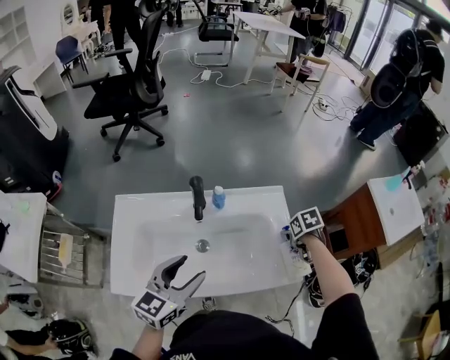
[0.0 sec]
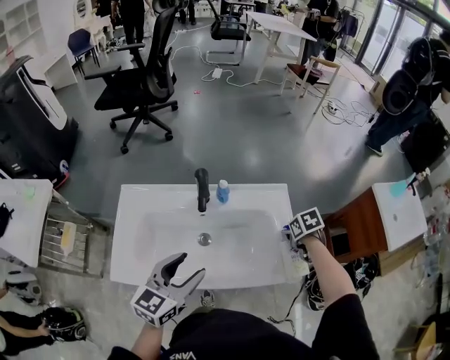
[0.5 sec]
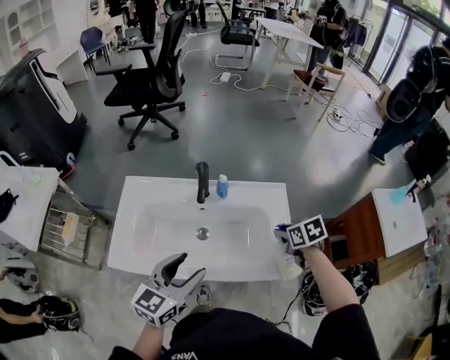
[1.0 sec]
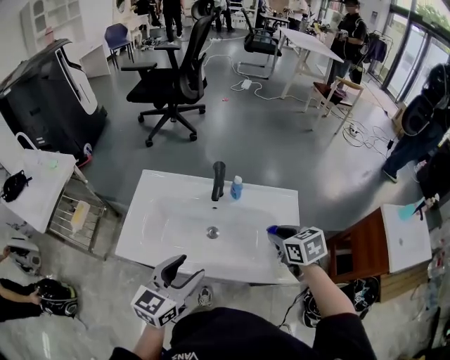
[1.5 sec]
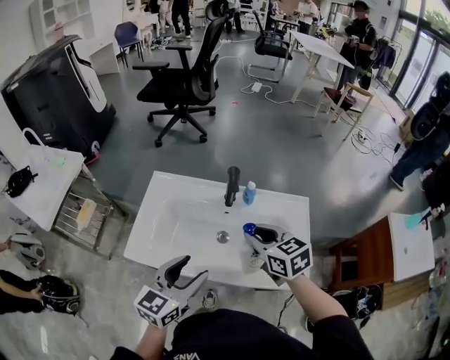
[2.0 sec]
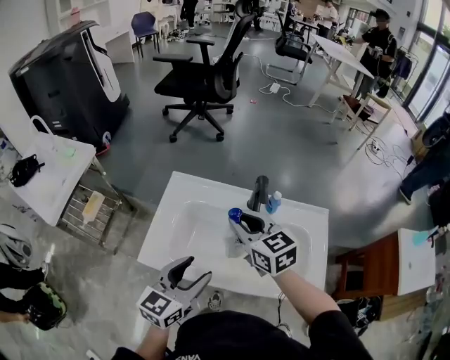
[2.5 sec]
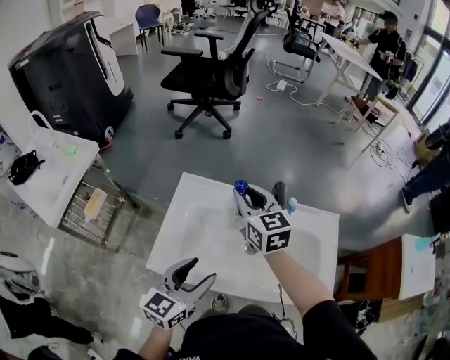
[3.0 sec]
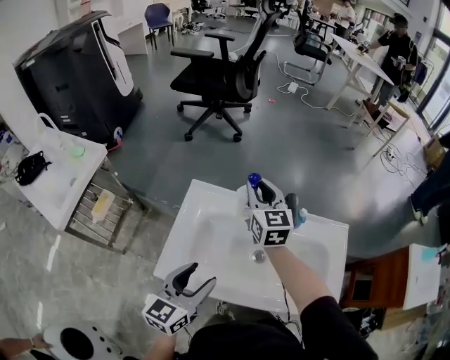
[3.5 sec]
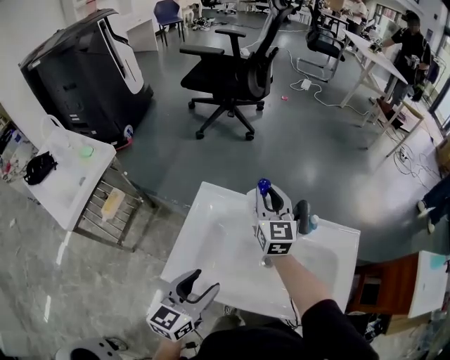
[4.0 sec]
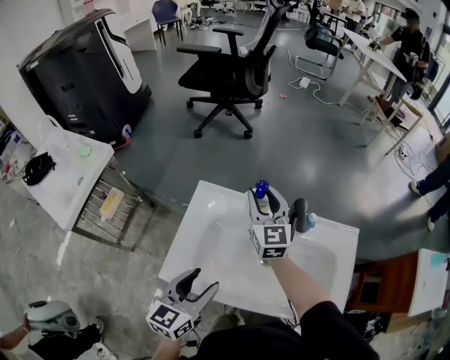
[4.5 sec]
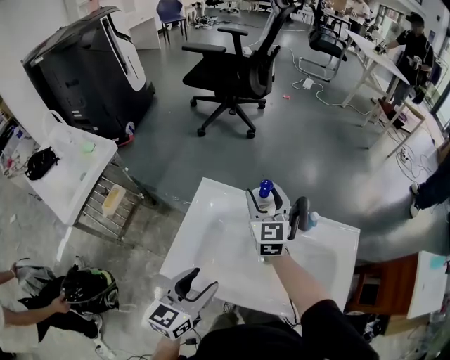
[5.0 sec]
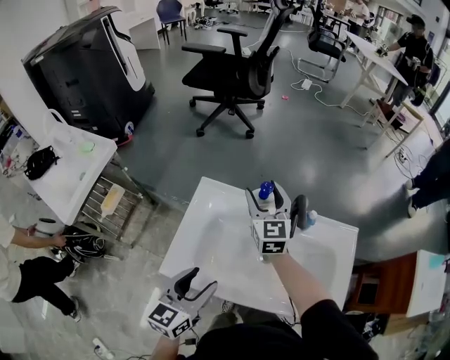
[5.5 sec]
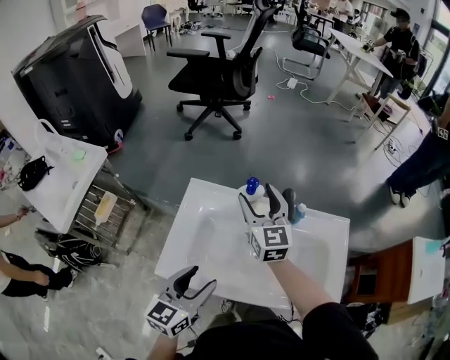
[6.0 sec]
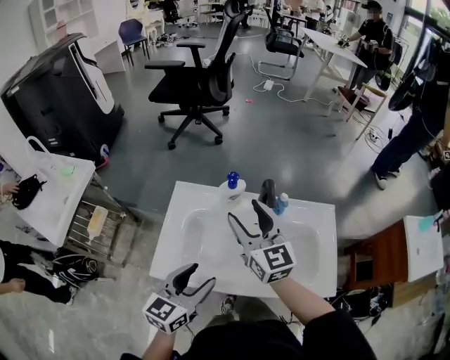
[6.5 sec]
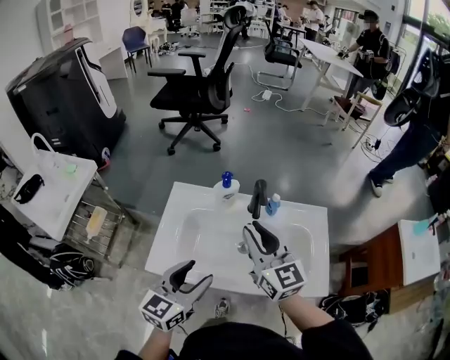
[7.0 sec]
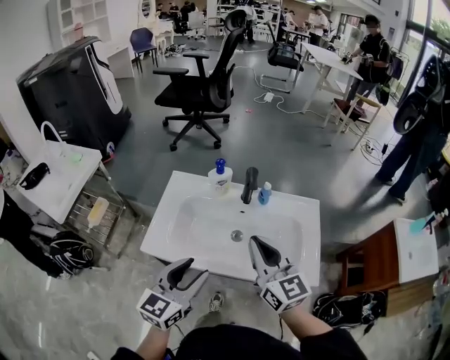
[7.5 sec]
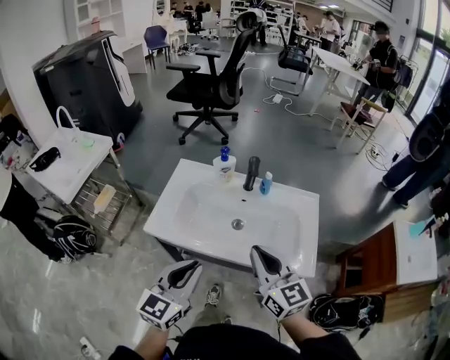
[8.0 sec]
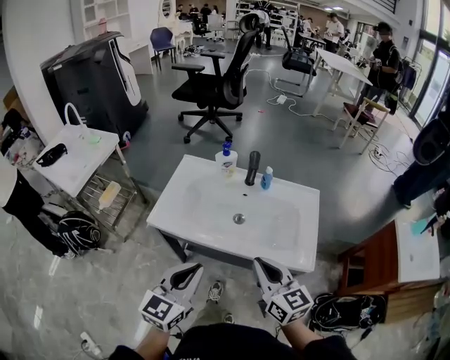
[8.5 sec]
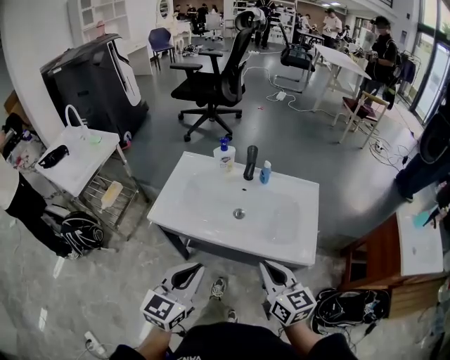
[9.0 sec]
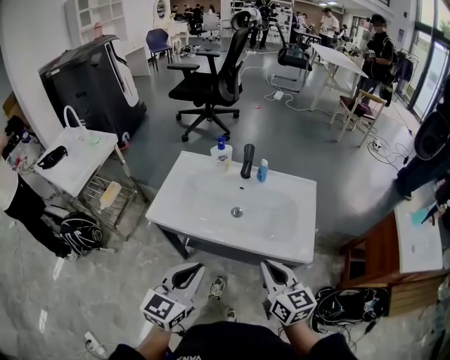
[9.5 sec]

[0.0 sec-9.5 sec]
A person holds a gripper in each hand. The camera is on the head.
0.0 sec to 2.0 sec: The left gripper travels backward by some 5 cm, while the right gripper goes about 30 cm to the left and upward, points its fingers roughly 40 degrees further upward, and closes its fingers.
2.0 sec to 4.0 sec: The left gripper goes approximately 15 cm to the left and forward. The right gripper shifts about 30 cm forward and to the left, and rotates roughly 30 degrees.
4.0 sec to 5.5 sec: The right gripper opens.
5.5 sec to 7.5 sec: The right gripper heads backward and to the right, covering approximately 30 cm, and closes up. The left gripper shifts about 15 cm to the right, backward and upward.
7.5 sec to 9.5 sec: The left gripper shifts about 15 cm backward, and closes its fingers. Meanwhile the right gripper shifts approximately 20 cm backward, downward and to the right.

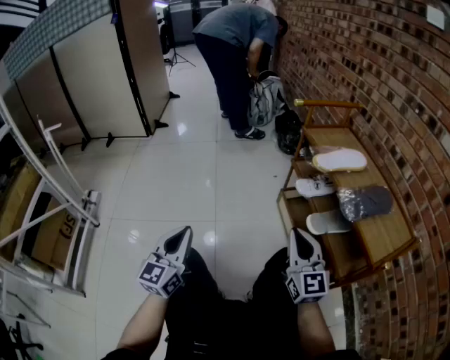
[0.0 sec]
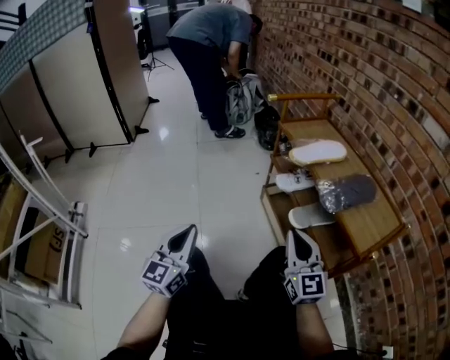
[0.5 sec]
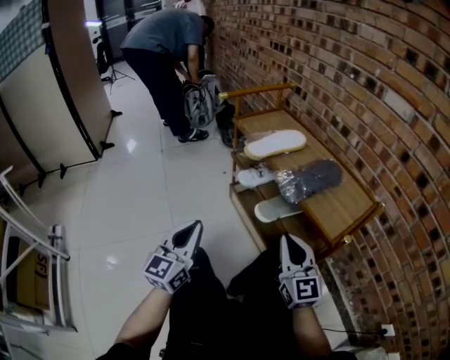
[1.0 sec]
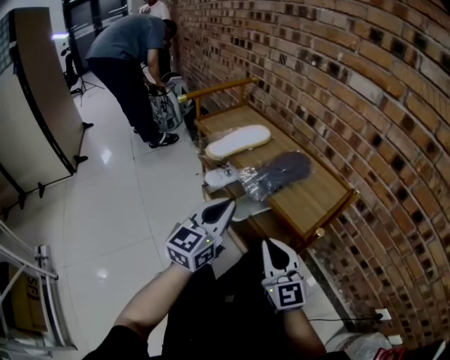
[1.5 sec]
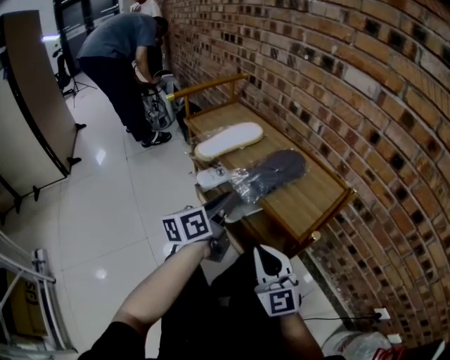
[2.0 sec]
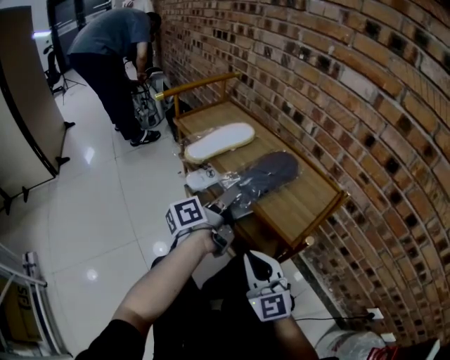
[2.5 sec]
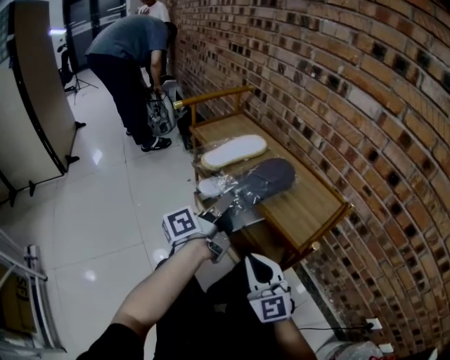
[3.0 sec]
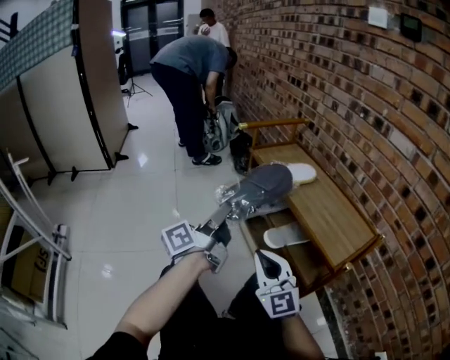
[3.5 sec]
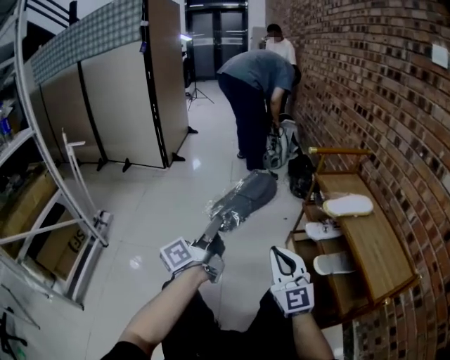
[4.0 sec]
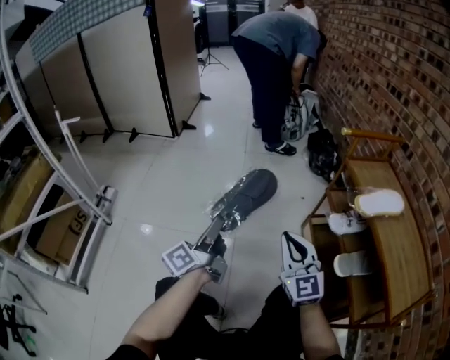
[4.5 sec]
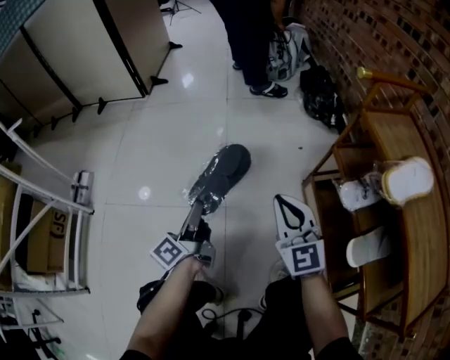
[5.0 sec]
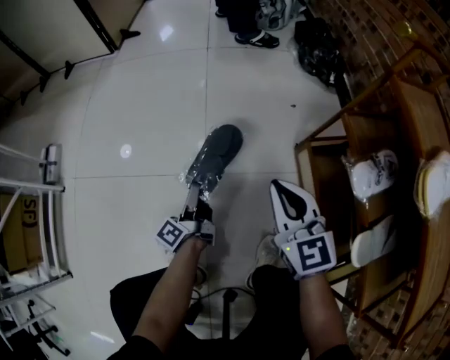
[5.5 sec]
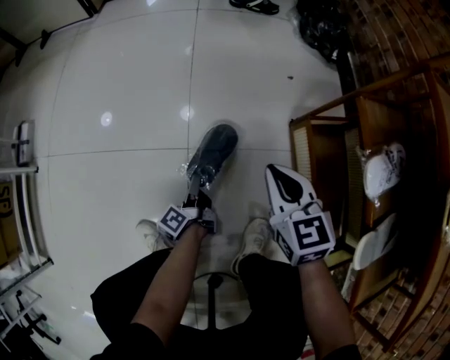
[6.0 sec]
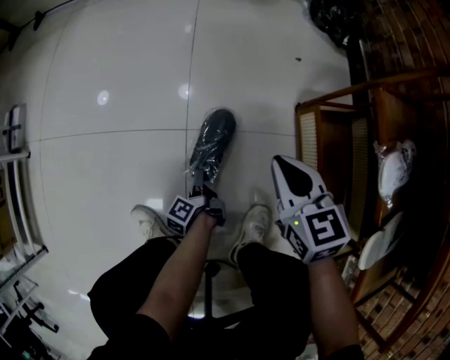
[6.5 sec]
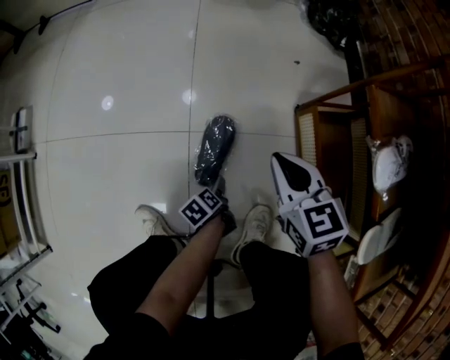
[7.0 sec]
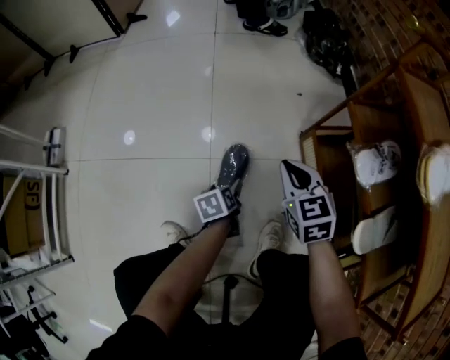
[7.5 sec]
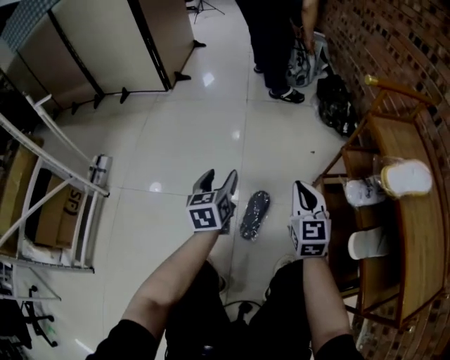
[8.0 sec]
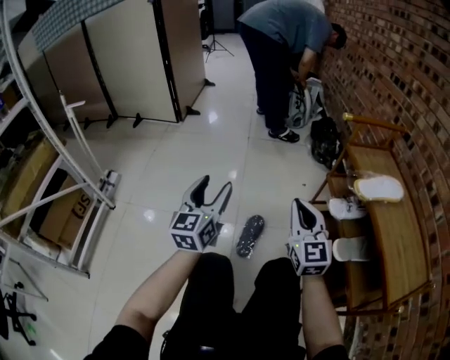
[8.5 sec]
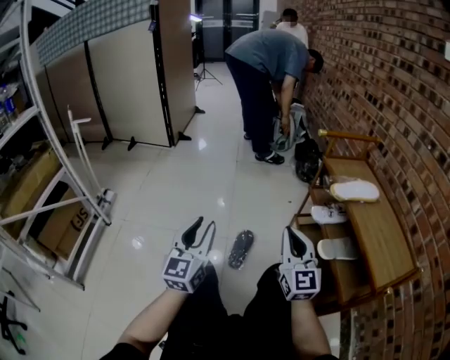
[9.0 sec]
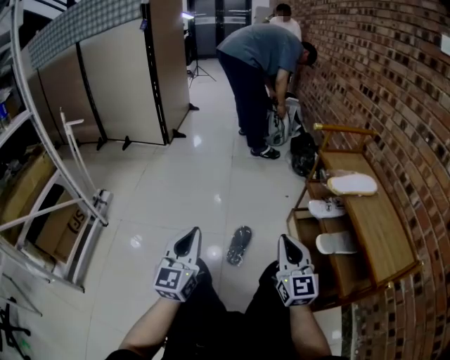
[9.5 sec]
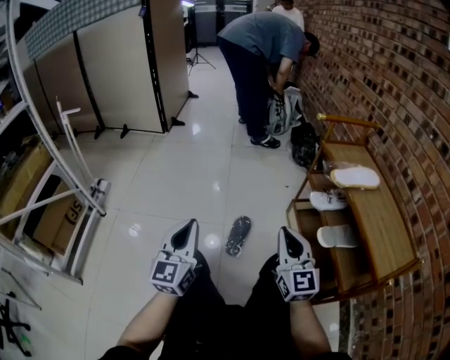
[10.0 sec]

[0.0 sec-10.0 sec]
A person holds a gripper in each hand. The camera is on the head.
0.0 sec to 2.0 sec: The left gripper changes place by about 40 cm, and swivels about 60 degrees; the right gripper moves roughly 15 cm.
2.0 sec to 4.0 sec: The left gripper ends up roughly 40 cm from where it was, and swivels some 50 degrees. The right gripper moves about 30 cm, and changes its angle by about 30 degrees.
4.0 sec to 6.0 sec: The right gripper moves downward and forward, roughly 40 cm, and points its fingers some 40 degrees further downward, while the left gripper travels downward by roughly 60 cm, and points its fingers approximately 40 degrees further downward.
6.0 sec to 8.0 sec: The left gripper is displaced upward by roughly 35 cm, rolls clockwise, seen from behind, by about 70 degrees, and opens up. Meanwhile the right gripper heads upward, covering approximately 15 cm, and rotates approximately 20 degrees.
8.0 sec to 10.0 sec: The two grippers go roughly 30 cm backward and upward. The left gripper changes its angle by approximately 30 degrees, and closes.

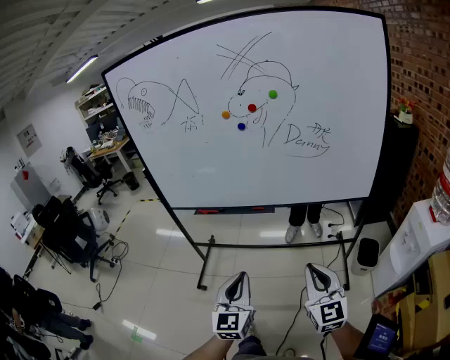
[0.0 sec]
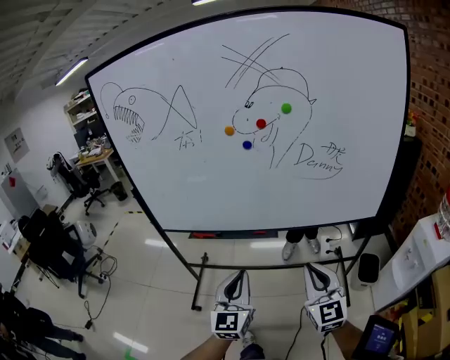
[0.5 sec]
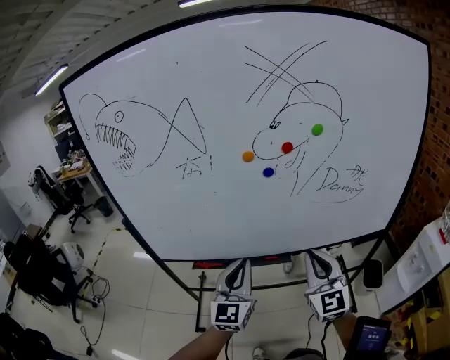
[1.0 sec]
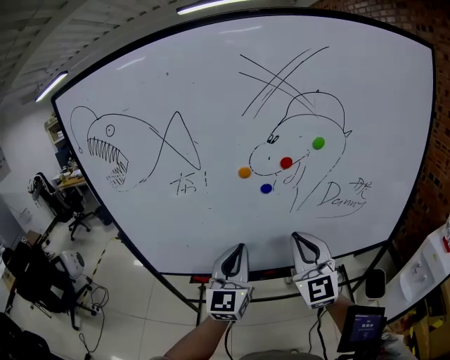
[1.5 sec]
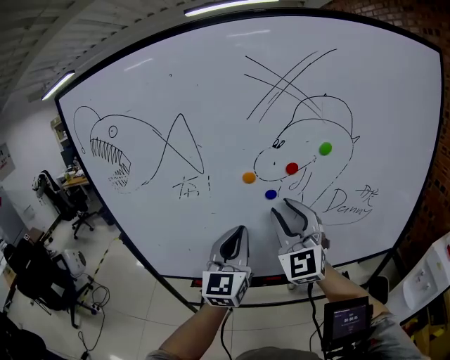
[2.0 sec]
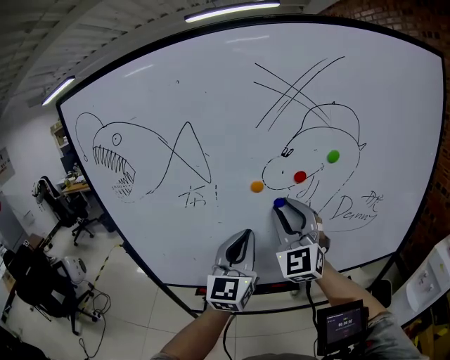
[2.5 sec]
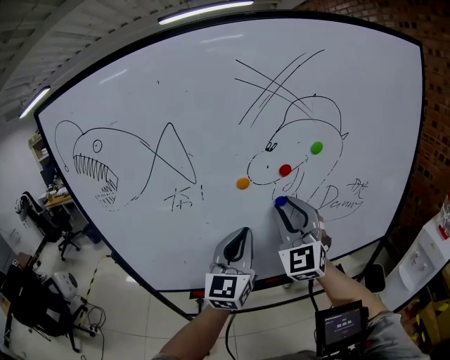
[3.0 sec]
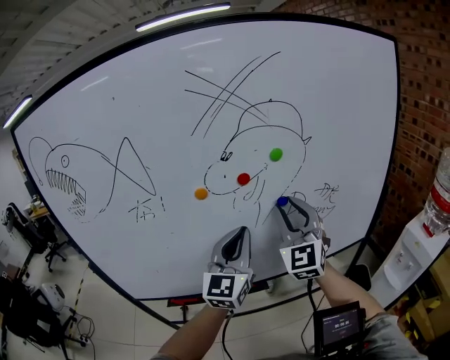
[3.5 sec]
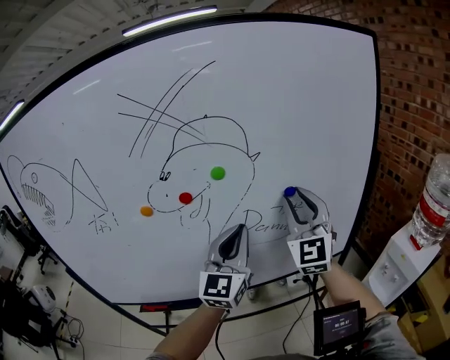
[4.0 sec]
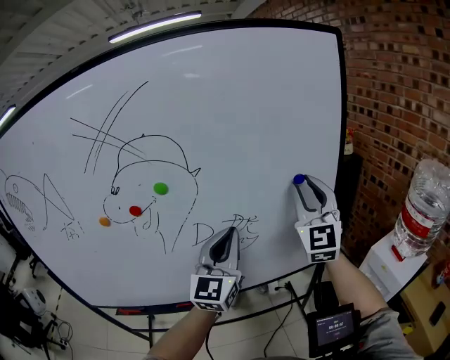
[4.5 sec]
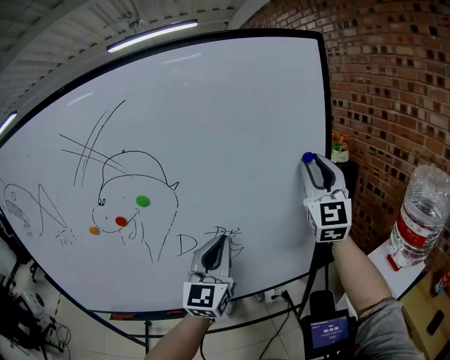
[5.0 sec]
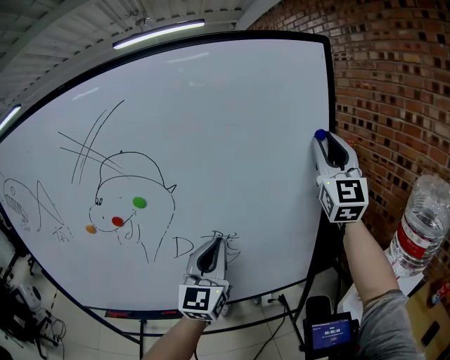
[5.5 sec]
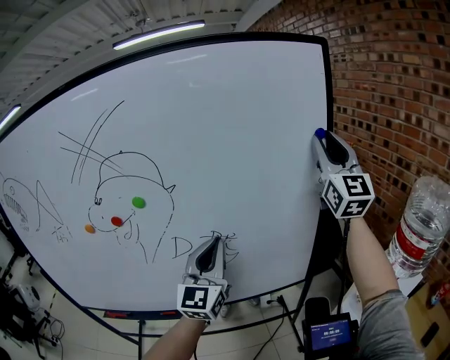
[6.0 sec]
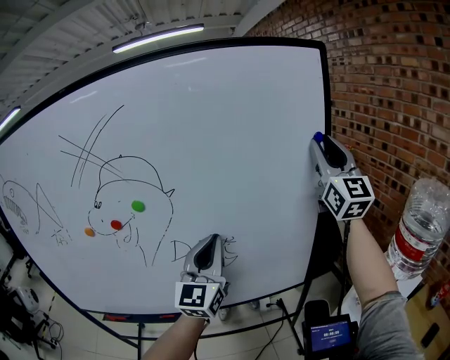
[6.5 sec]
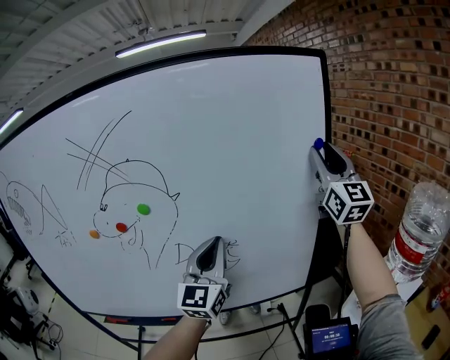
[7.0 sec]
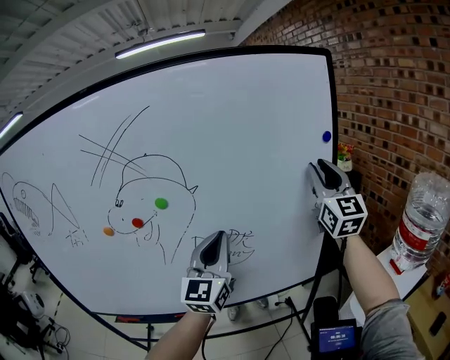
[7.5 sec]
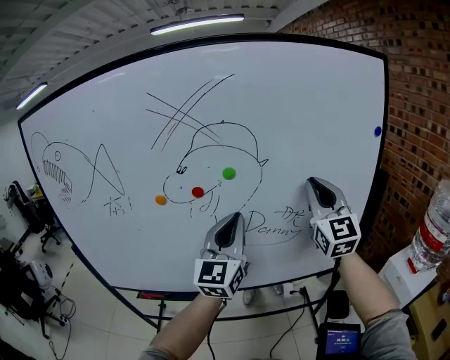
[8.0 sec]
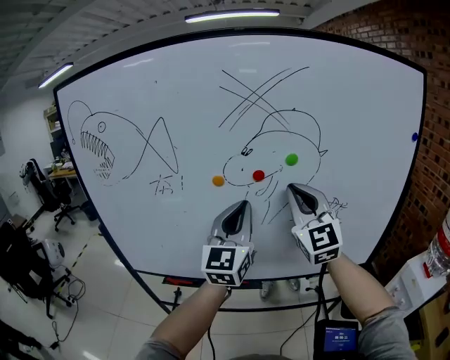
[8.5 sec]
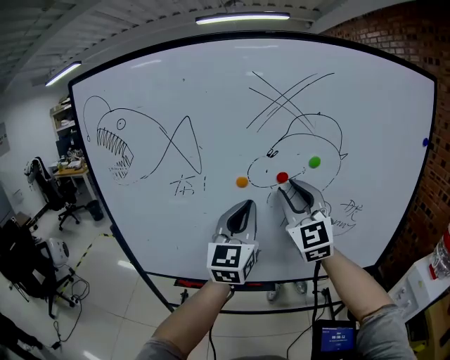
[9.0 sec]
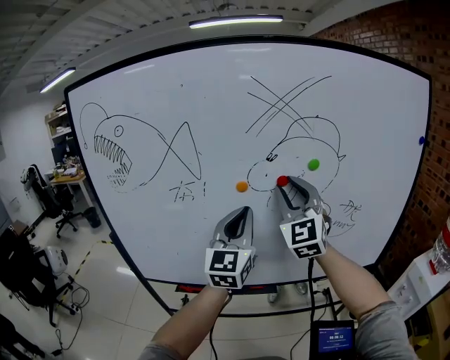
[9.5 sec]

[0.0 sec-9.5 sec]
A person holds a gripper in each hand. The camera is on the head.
0.0 sec to 2.0 sec: The two grippers travel together, forward, some 40 cm. Both grippers travel together upward, approximately 20 cm. The right gripper rotates some 30 degrees, and opens; the left gripper swivels about 20 degrees.
2.0 sec to 4.0 sec: Both grippers move to the right, roughly 25 cm.
4.0 sec to 5.5 sec: The right gripper goes approximately 30 cm to the right and upward. The left gripper is displaced to the right by roughly 15 cm.
5.5 sec to 7.5 sec: The right gripper shifts some 5 cm downward.
7.5 sec to 9.5 sec: The left gripper travels to the left by about 30 cm; the right gripper goes about 50 cm to the left, turns by roughly 30 degrees, and closes and opens again.
